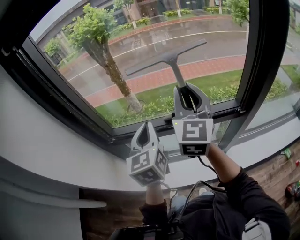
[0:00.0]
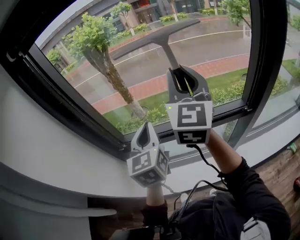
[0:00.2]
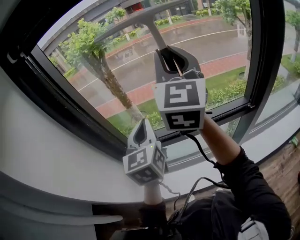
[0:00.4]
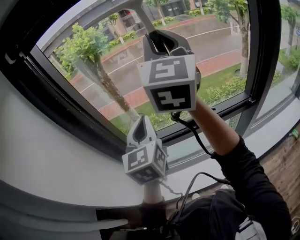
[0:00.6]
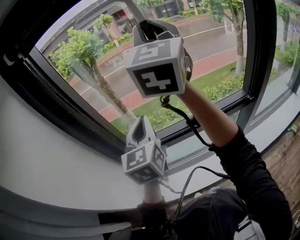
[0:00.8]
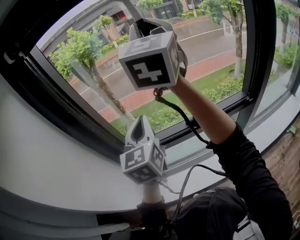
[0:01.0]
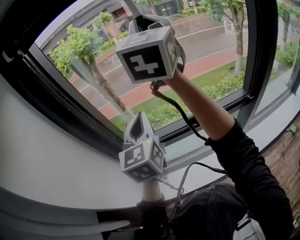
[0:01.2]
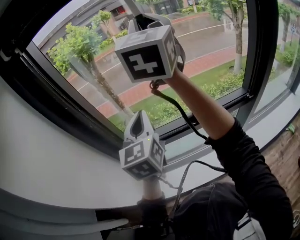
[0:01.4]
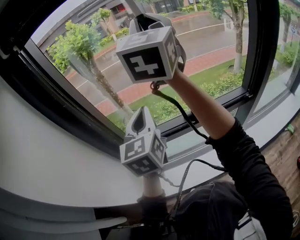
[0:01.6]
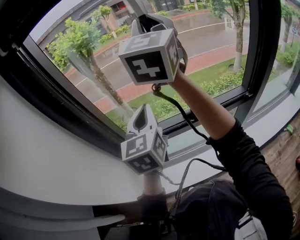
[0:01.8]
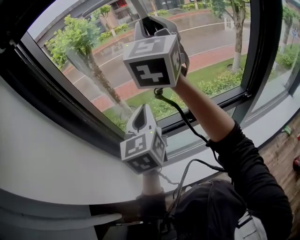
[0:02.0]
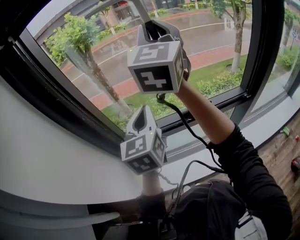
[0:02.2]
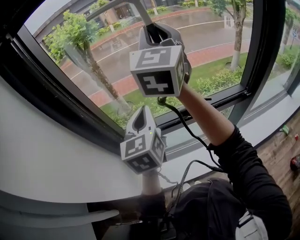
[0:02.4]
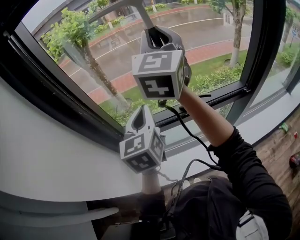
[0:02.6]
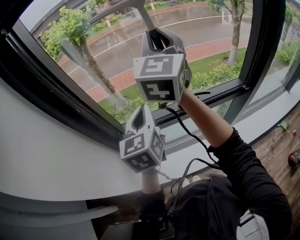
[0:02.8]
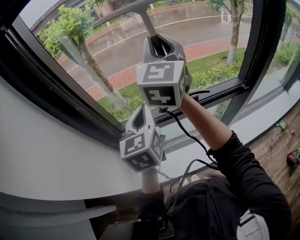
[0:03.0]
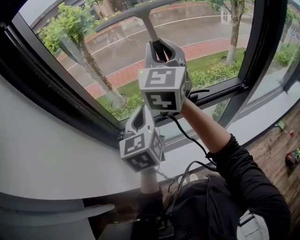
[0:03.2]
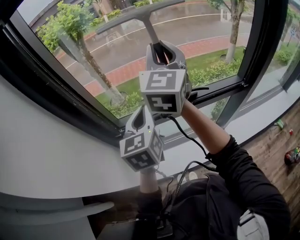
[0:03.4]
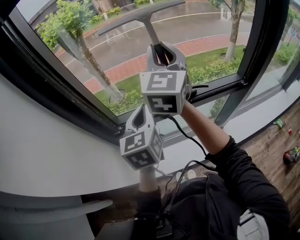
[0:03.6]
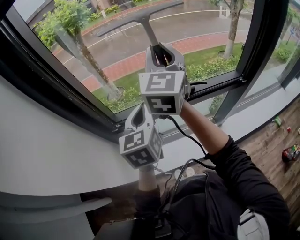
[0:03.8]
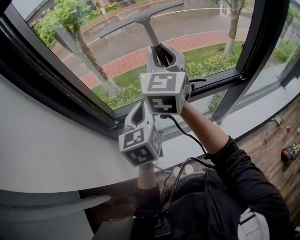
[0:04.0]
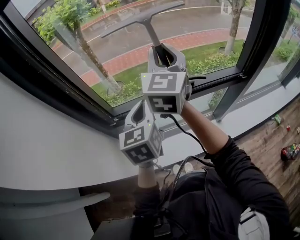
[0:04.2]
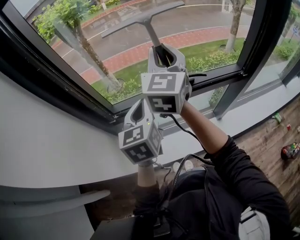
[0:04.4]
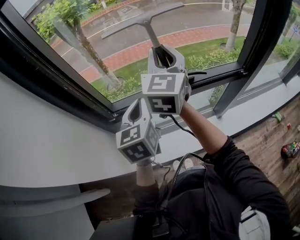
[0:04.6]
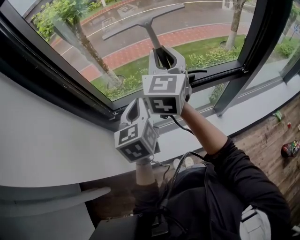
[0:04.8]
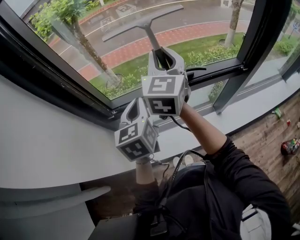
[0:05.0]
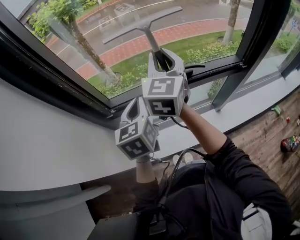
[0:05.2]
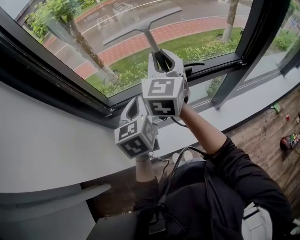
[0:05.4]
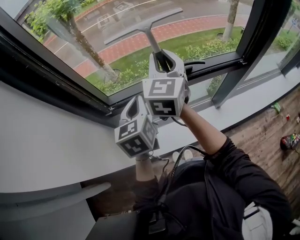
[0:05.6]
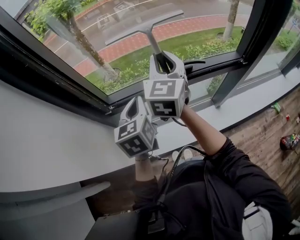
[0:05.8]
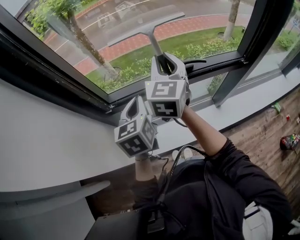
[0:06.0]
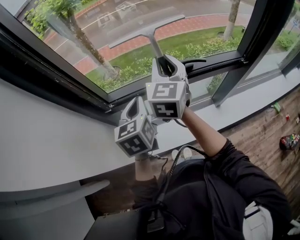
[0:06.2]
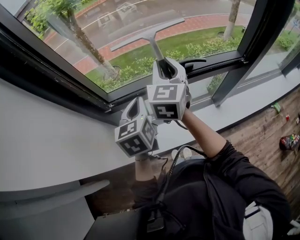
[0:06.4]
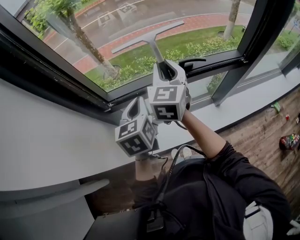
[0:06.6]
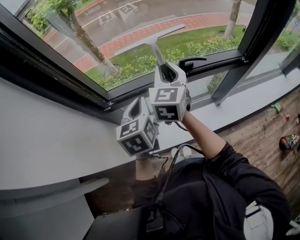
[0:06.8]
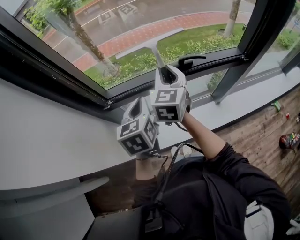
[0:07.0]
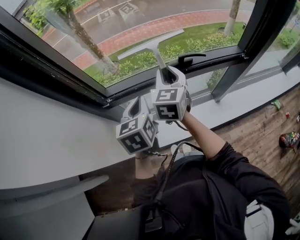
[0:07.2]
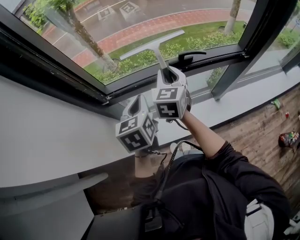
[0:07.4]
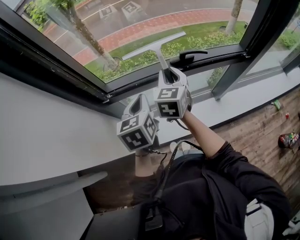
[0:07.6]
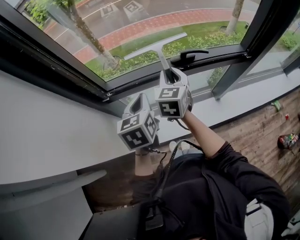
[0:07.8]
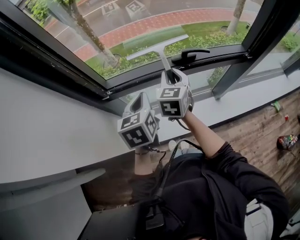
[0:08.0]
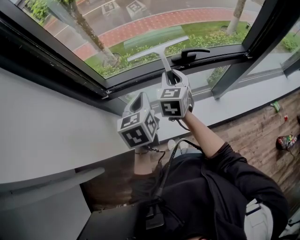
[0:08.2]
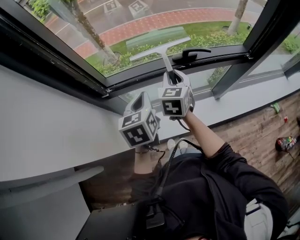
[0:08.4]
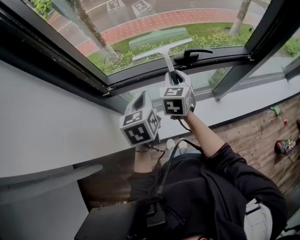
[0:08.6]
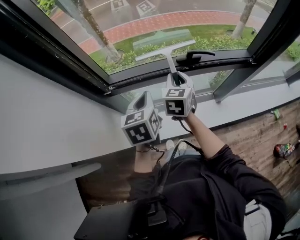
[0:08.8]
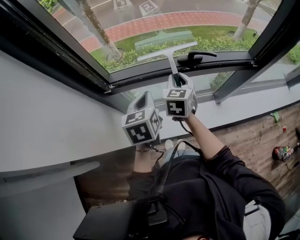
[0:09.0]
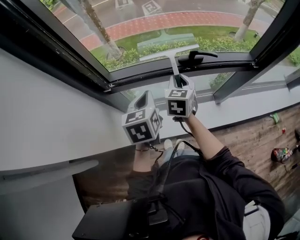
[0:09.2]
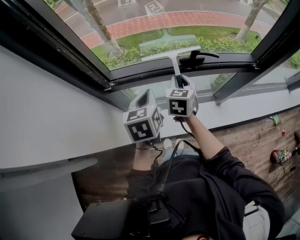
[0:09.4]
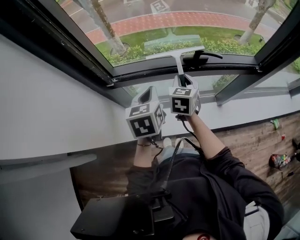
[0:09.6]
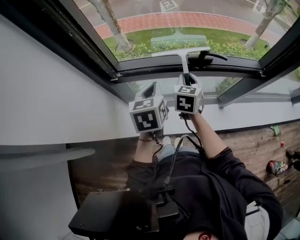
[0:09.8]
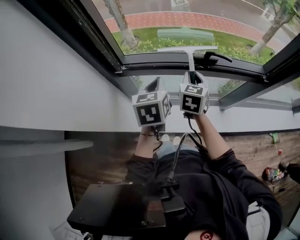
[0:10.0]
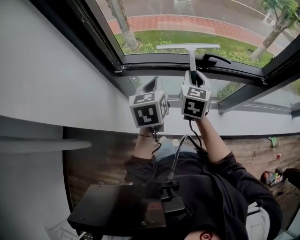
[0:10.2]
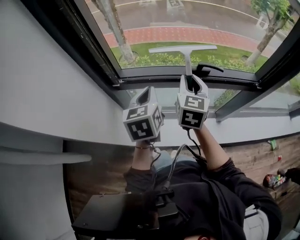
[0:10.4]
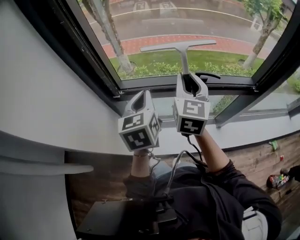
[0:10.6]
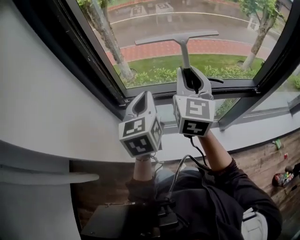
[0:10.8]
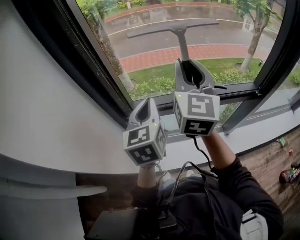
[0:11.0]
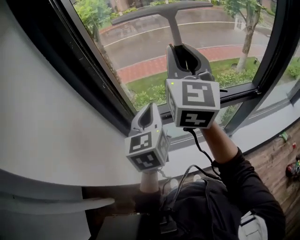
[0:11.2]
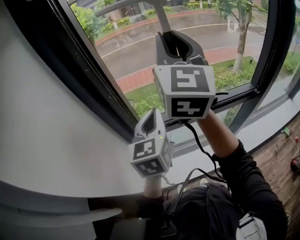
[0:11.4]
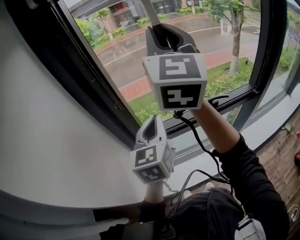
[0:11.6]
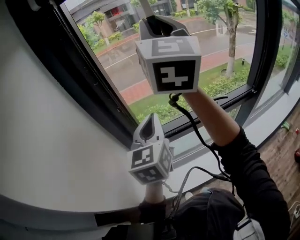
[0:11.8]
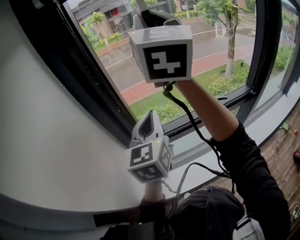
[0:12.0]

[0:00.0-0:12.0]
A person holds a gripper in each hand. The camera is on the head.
0.0 to 1.6 s: The left gripper shifts roughly 15 cm to the left and upward; the right gripper goes some 25 cm upward and to the left.
1.6 to 3.0 s: The right gripper moves downward, about 15 cm; the left gripper travels downward by roughly 5 cm.
3.0 to 4.4 s: The right gripper heads downward, covering about 10 cm. Meanwhile the left gripper heads downward, covering roughly 5 cm.
4.4 to 6.0 s: The right gripper shifts some 10 cm downward. Meanwhile the left gripper changes place by some 5 cm.
6.0 to 7.6 s: The right gripper travels downward by approximately 10 cm.
7.6 to 9.0 s: The right gripper is displaced downward by about 5 cm.
9.0 to 10.4 s: The right gripper moves upward, some 10 cm; the left gripper is displaced upward by some 5 cm.
10.4 to 12.0 s: The left gripper moves upward and to the left, about 20 cm, and rotates roughly 30 degrees. Meanwhile the right gripper moves upward, roughly 40 cm, and angles its fingers upward, by roughly 40 degrees.

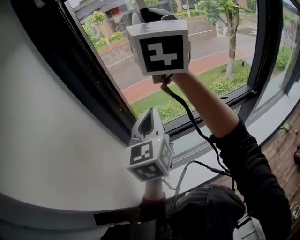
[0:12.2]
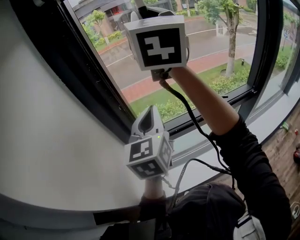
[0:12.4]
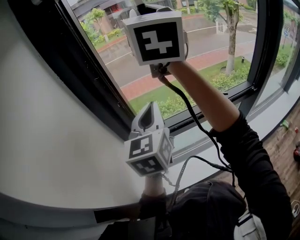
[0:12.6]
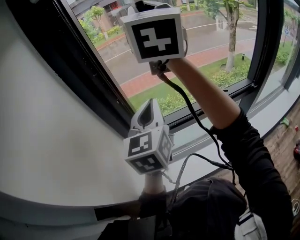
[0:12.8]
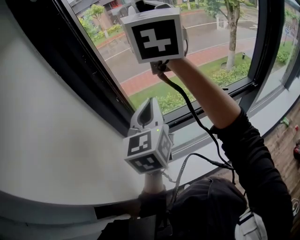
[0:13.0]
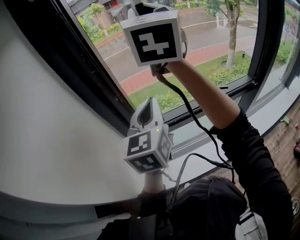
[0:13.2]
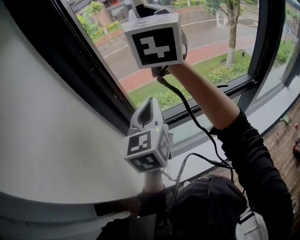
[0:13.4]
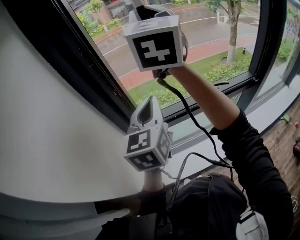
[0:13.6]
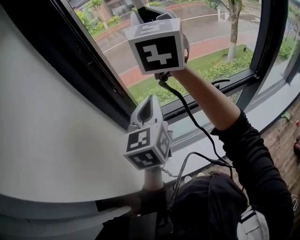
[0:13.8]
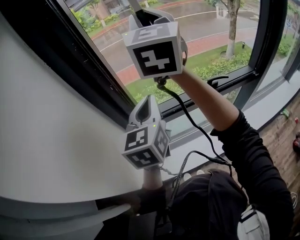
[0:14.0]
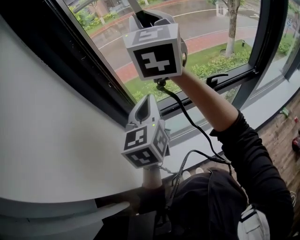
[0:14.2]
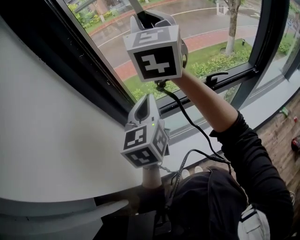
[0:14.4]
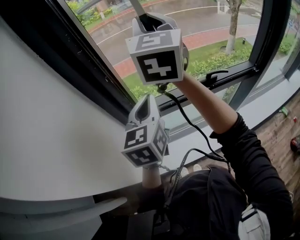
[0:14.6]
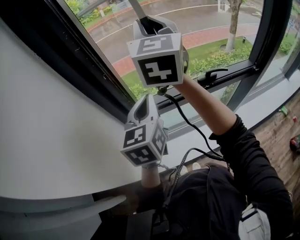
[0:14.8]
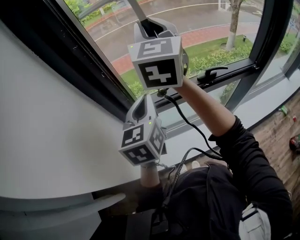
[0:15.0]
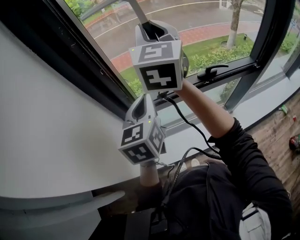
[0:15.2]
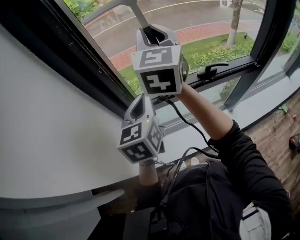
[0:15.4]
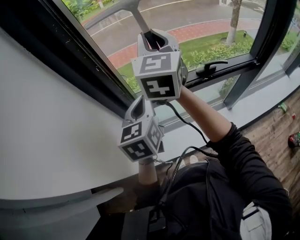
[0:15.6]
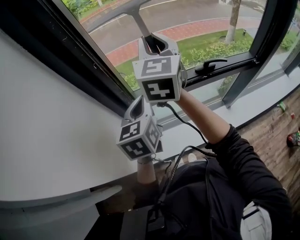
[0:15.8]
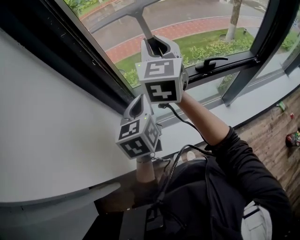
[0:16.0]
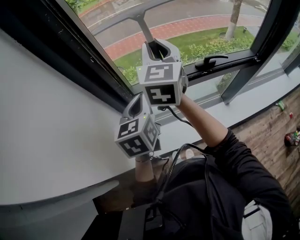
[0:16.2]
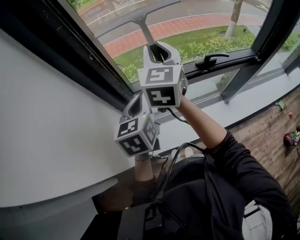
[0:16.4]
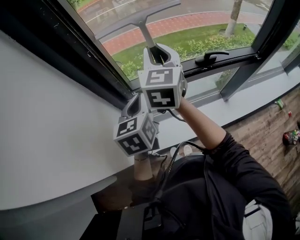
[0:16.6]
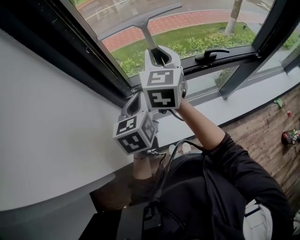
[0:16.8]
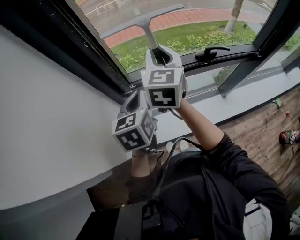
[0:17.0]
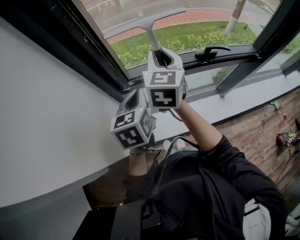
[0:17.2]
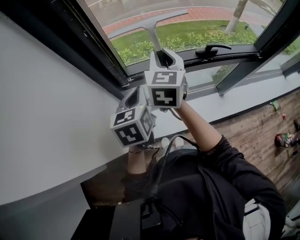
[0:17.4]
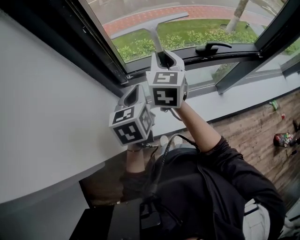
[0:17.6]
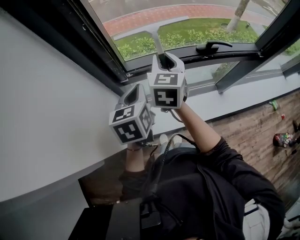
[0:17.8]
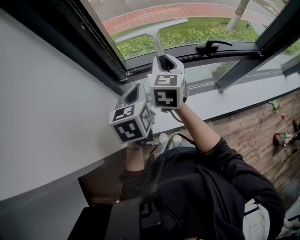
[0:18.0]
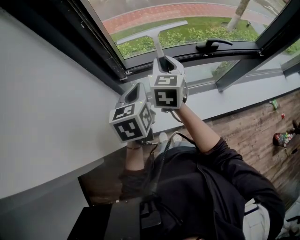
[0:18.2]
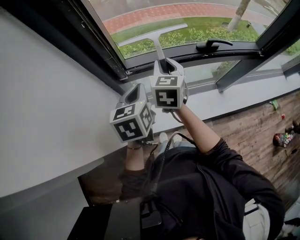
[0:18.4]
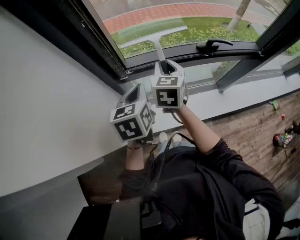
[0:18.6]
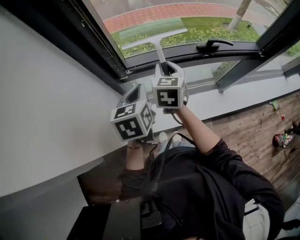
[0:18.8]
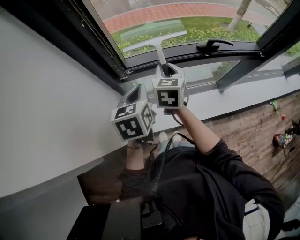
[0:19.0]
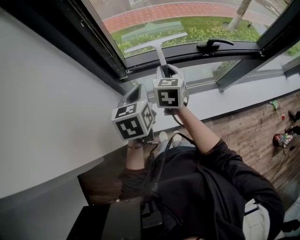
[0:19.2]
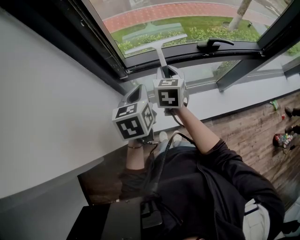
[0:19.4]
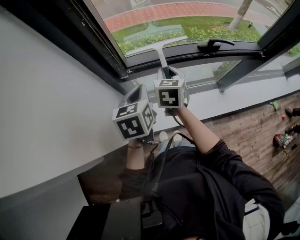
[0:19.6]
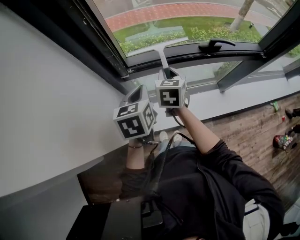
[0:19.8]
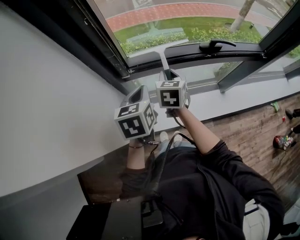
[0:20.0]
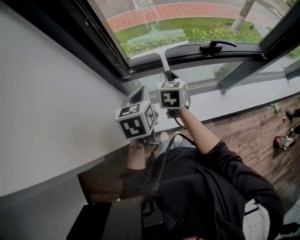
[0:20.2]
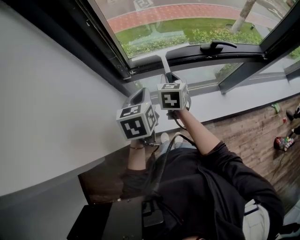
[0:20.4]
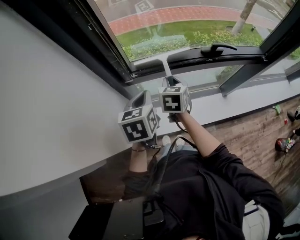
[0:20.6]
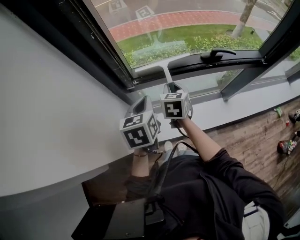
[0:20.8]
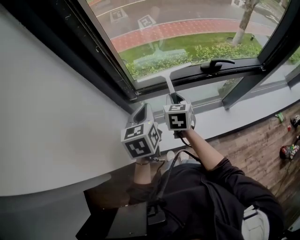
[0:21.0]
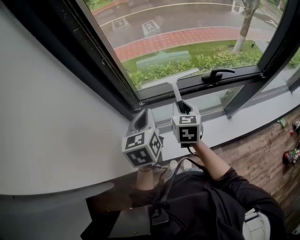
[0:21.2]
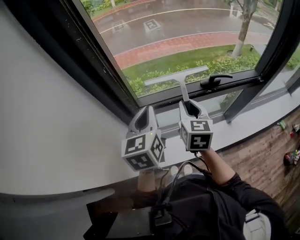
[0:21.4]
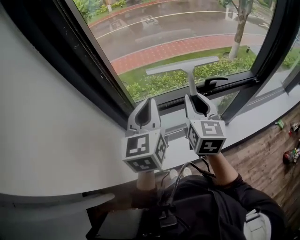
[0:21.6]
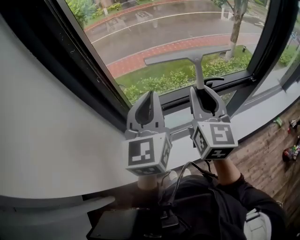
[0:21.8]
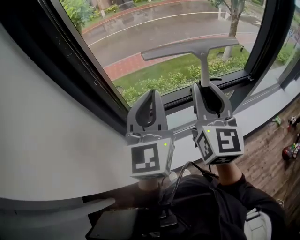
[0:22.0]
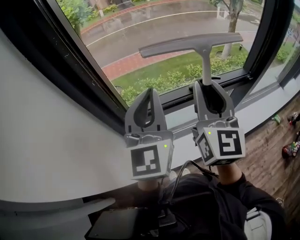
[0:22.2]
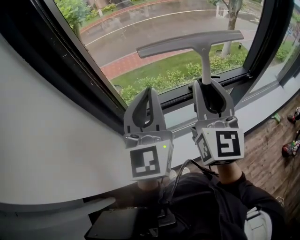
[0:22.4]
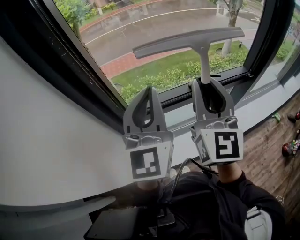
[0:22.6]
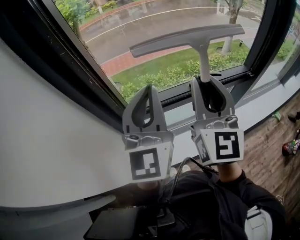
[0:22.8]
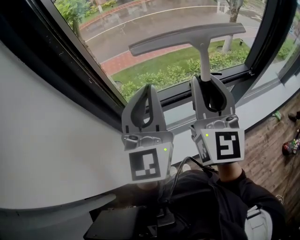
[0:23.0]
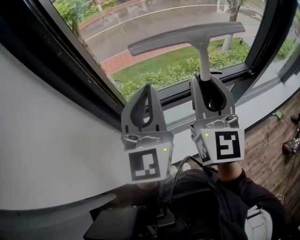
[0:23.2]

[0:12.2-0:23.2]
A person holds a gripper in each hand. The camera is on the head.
12.2 to 13.8 s: The right gripper travels downward by approximately 5 cm.
13.8 to 15.4 s: The left gripper is displaced downward by approximately 10 cm. The right gripper goes approximately 15 cm downward.
15.4 to 17.0 s: The right gripper goes roughly 15 cm downward, while the left gripper shifts approximately 10 cm downward.
17.0 to 18.4 s: The right gripper shifts roughly 10 cm downward.
18.4 to 20.0 s: The right gripper heads downward, covering some 10 cm.
20.0 to 21.6 s: The right gripper travels upward and to the right by approximately 20 cm, and changes its angle by approximately 30 degrees, while the left gripper travels upward by approximately 20 cm, and turns by roughly 30 degrees.
21.6 to 23.2 s: Both grippers move upward, roughly 10 cm. The left gripper turns by approximately 20 degrees, while the right gripper swivels roughly 20 degrees.

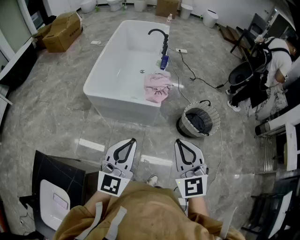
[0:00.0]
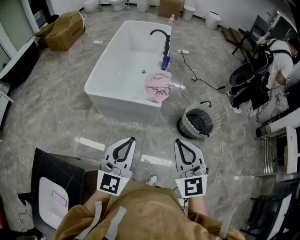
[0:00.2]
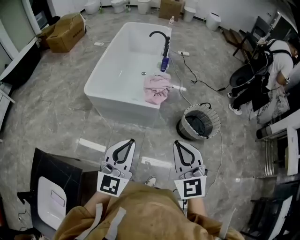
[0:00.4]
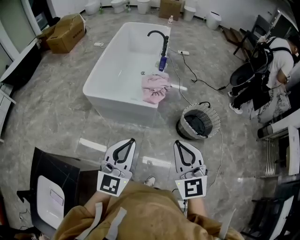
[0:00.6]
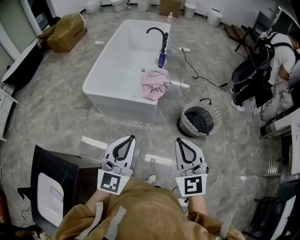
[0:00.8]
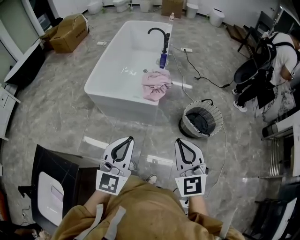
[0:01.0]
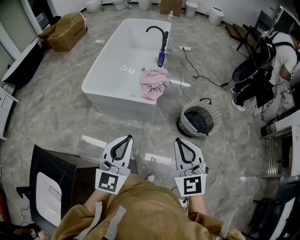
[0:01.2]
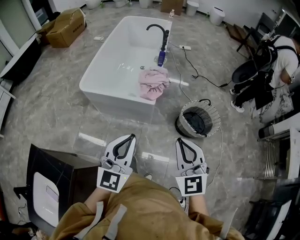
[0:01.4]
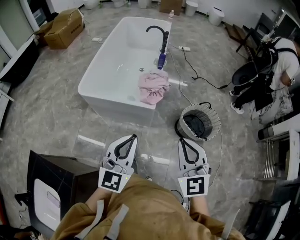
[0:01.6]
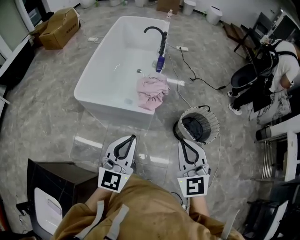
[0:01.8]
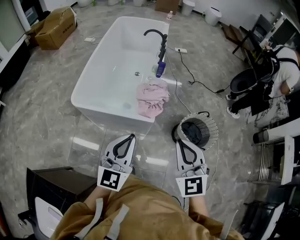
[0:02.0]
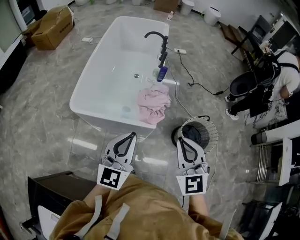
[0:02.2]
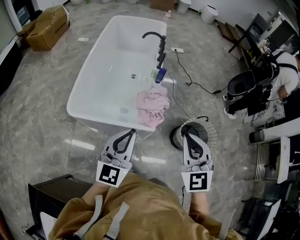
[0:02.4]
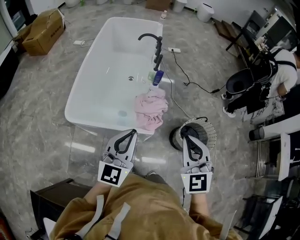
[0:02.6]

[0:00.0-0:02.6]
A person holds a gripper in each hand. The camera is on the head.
0.0 to 1.2 s: The two grippers go roughly 10 cm to the right.
1.2 to 2.6 s: The grippers both shift forward by about 30 cm.
